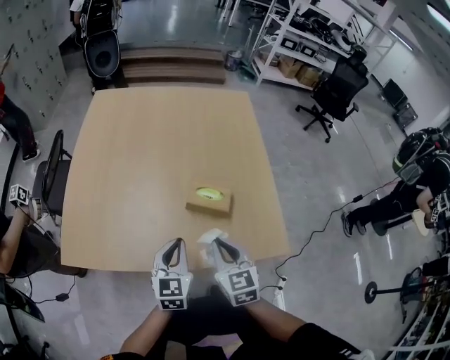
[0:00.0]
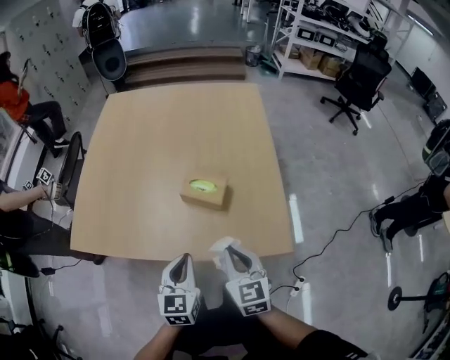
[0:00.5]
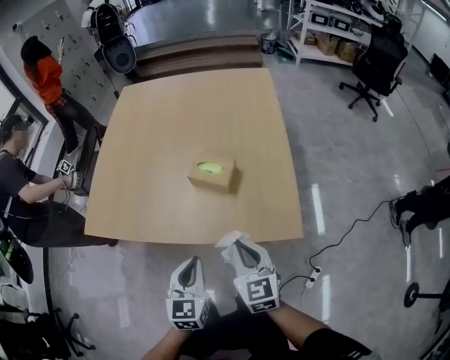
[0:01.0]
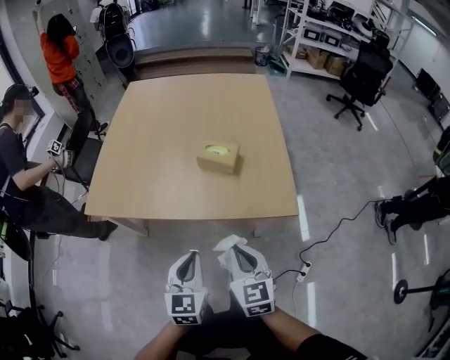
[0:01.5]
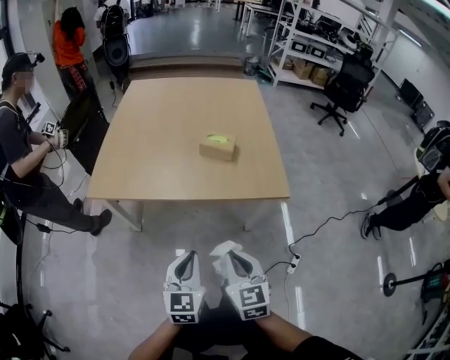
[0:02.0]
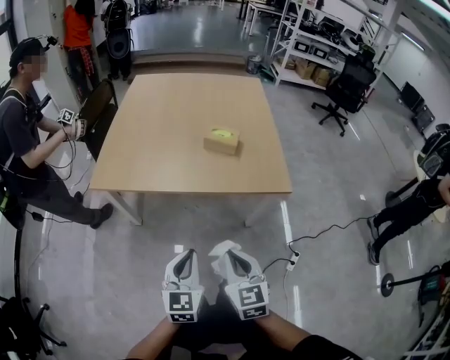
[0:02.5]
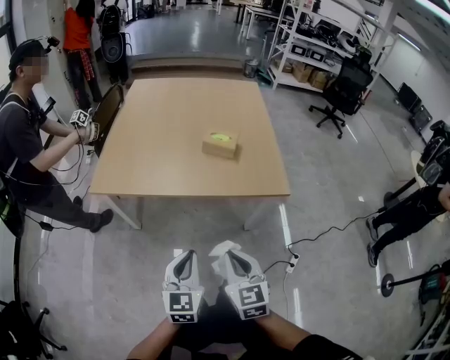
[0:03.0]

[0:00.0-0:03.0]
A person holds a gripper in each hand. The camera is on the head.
0:00.0 to 0:01.5: Both grippers move backward, approximately 20 cm.
0:01.5 to 0:03.0: Both grippers travel together backward, approximately 15 cm.

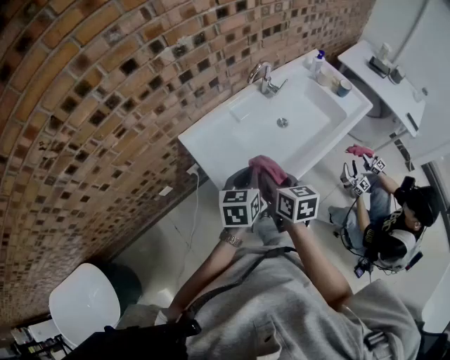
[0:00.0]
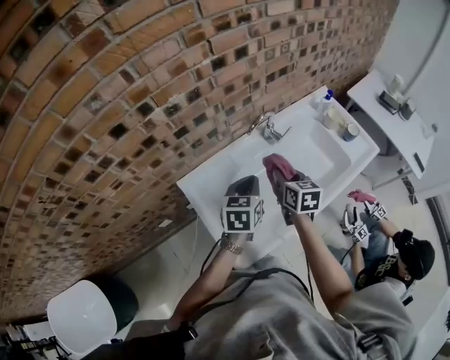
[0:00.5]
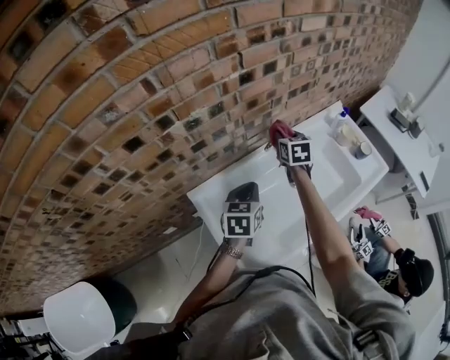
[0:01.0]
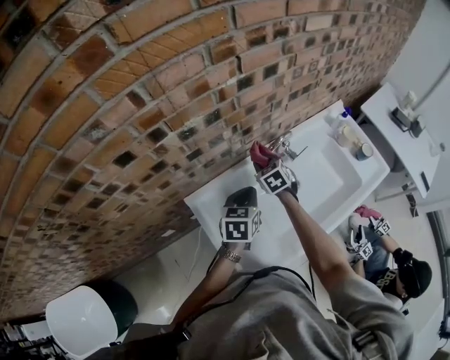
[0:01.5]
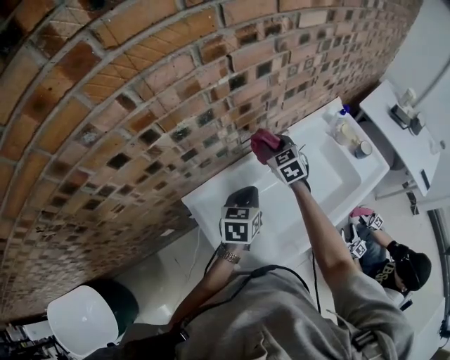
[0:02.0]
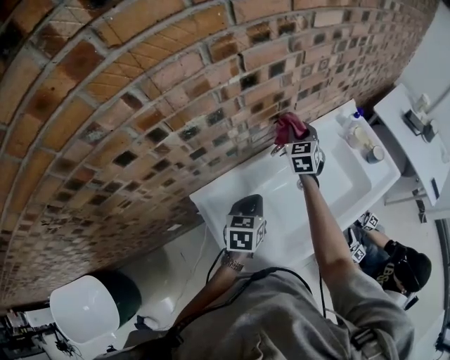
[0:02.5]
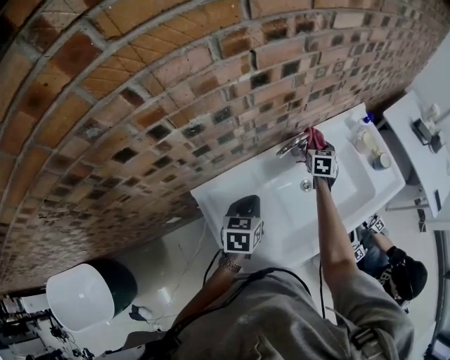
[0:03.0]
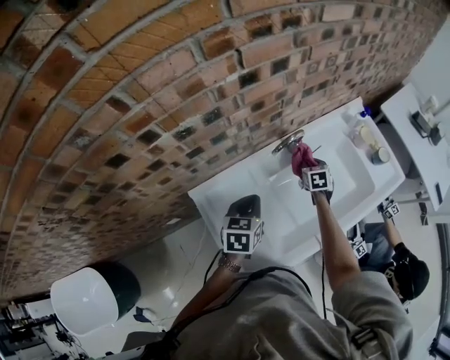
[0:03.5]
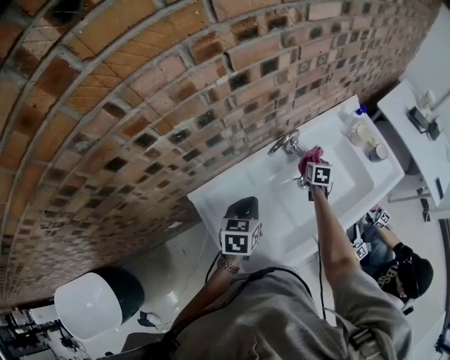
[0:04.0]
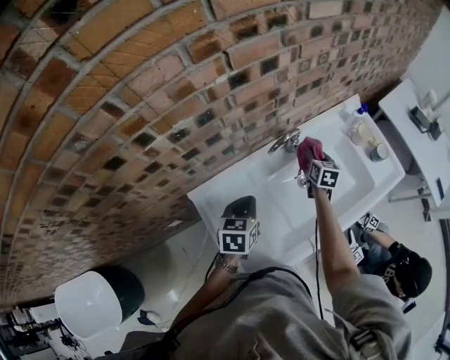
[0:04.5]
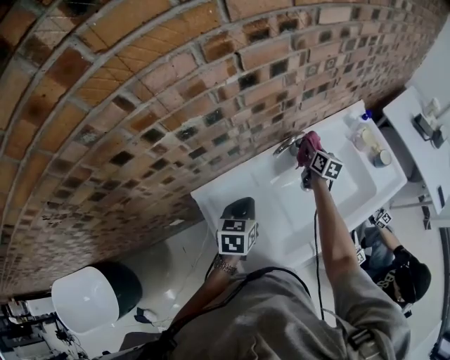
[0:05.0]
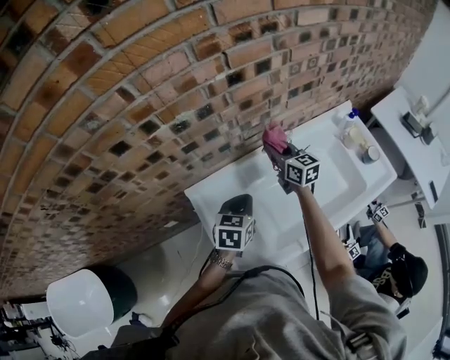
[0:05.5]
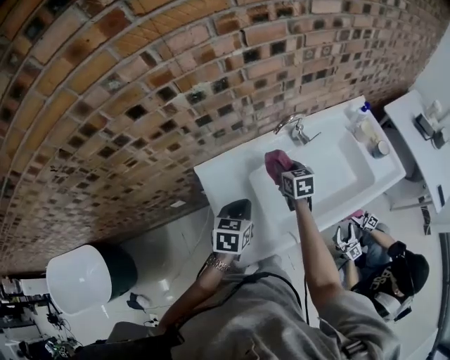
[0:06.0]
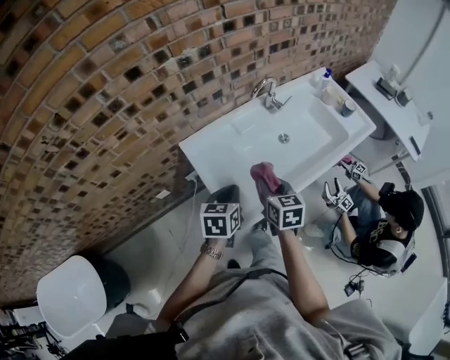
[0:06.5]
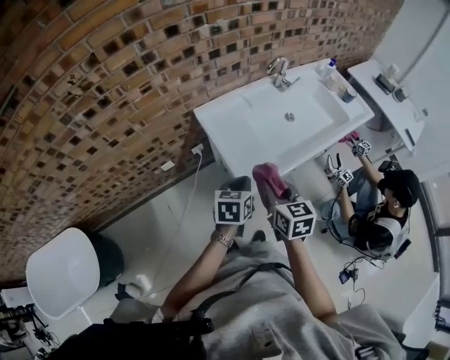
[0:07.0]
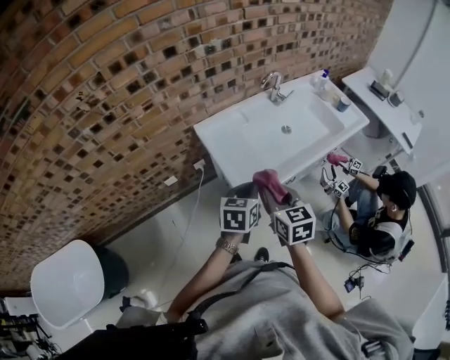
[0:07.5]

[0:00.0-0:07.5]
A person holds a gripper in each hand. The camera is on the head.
0:00.0 to 0:02.0: The left gripper heads forward, covering about 25 cm; the right gripper goes forward and backward, approximately 40 cm each way, reversing 2 times, and twists about 40 degrees counterclockwise, seen from behind.
0:02.0 to 0:04.0: The right gripper shifts roughly 25 cm downward and to the right, and changes its angle by roughly 40 degrees.
0:04.0 to 0:05.5: The right gripper is displaced upward and to the left by approximately 25 cm, and angles its fingers upward, by approximately 40 degrees.
0:05.5 to 0:07.5: The right gripper shifts roughly 50 cm backward, and rotates some 20 degrees; the left gripper travels backward by about 35 cm.

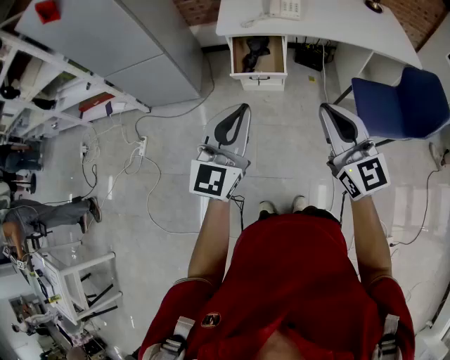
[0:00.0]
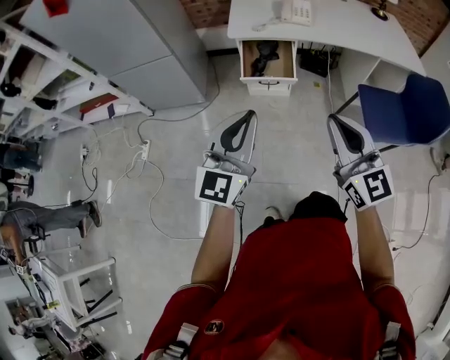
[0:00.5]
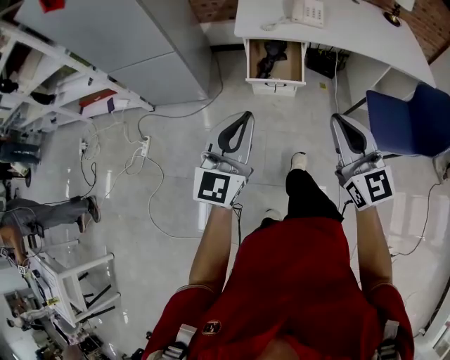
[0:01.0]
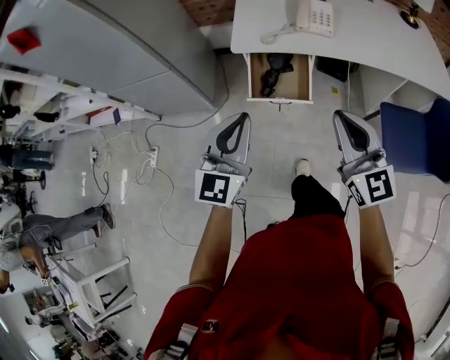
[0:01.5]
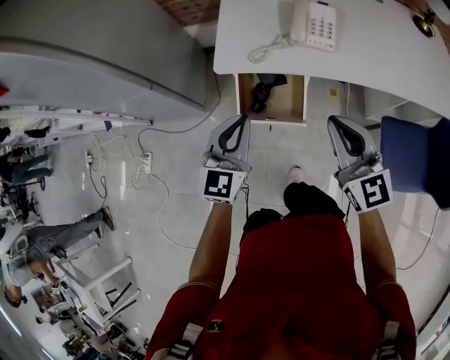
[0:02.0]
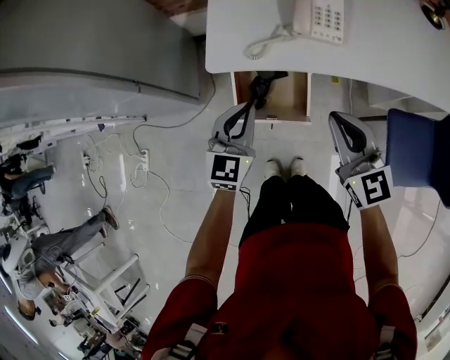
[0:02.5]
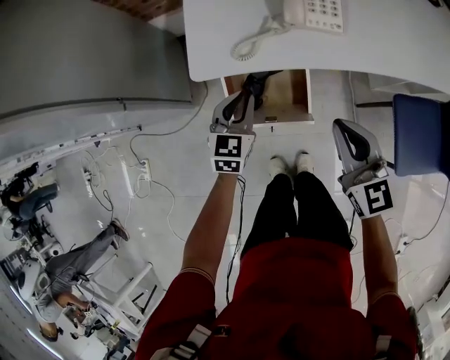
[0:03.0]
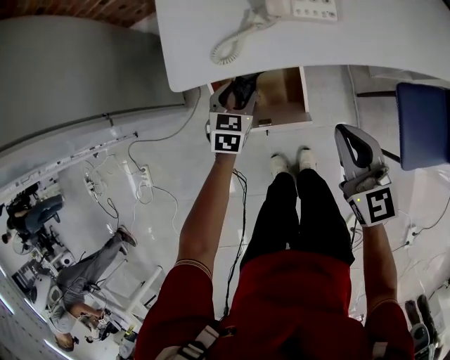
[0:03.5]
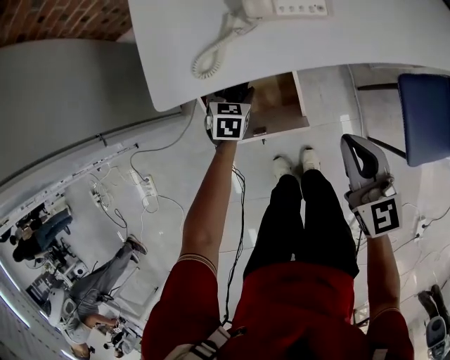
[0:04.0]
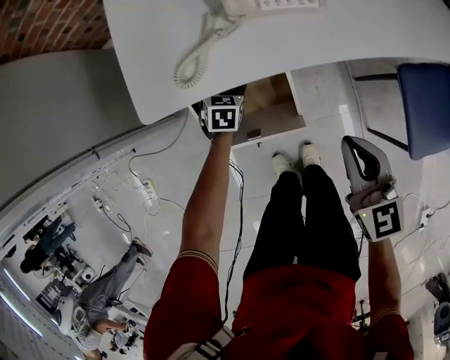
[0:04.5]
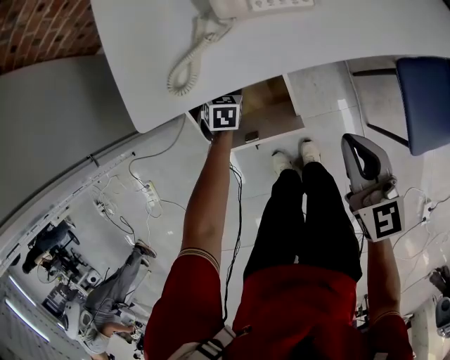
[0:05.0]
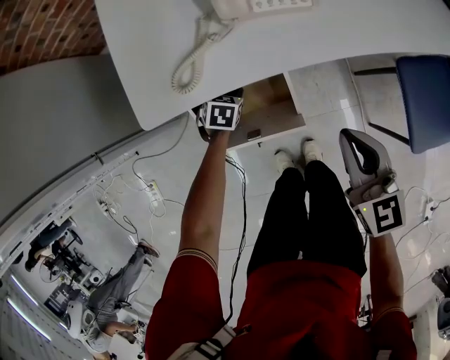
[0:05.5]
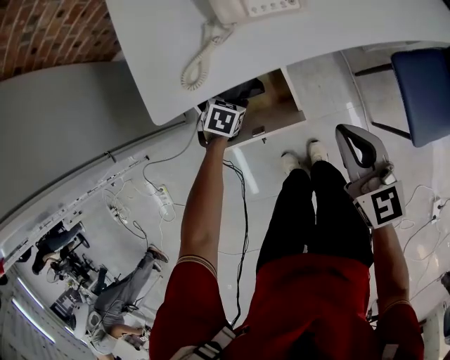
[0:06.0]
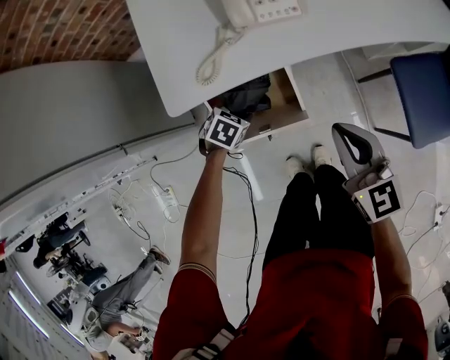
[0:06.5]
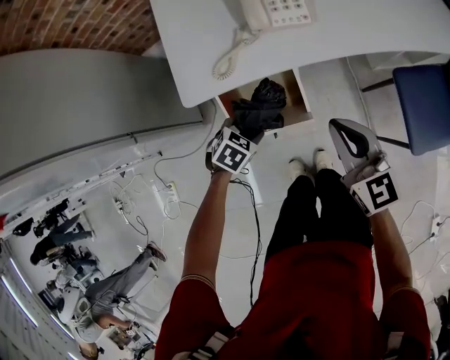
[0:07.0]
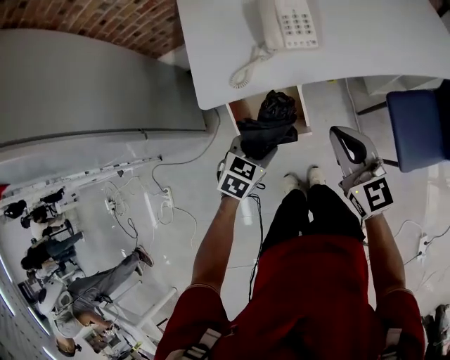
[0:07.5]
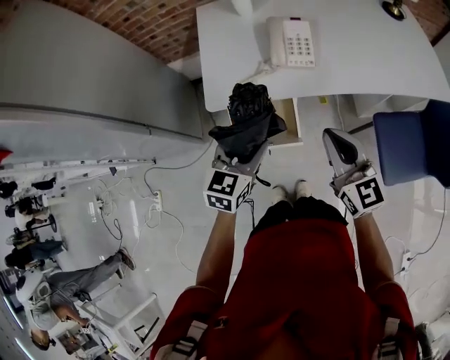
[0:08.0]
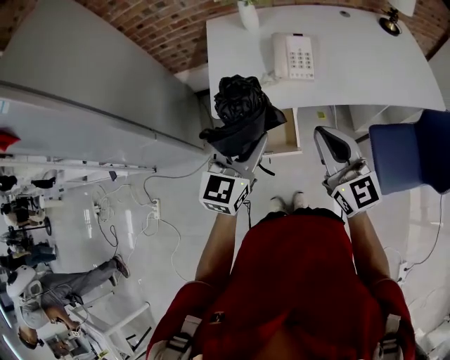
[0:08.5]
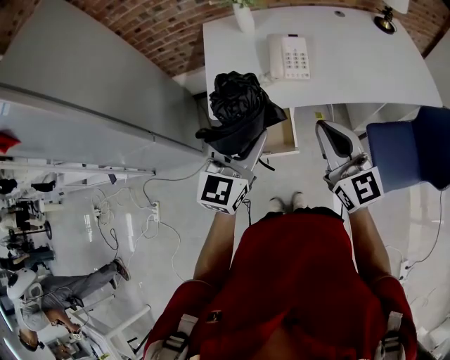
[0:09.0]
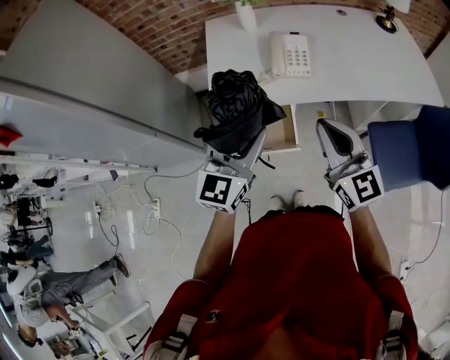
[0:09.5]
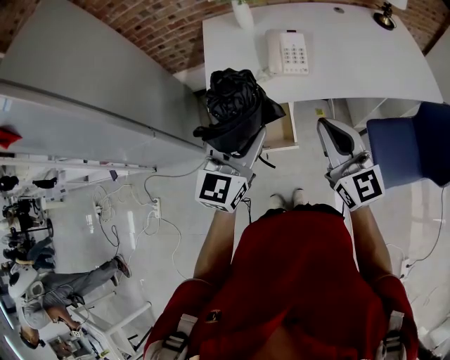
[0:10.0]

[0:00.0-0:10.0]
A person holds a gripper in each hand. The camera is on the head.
0:00.0 to 0:02.0: The grippers both shift forward by about 40 cm.
0:02.0 to 0:04.0: The left gripper travels downward and forward by about 40 cm, points its fingers approximately 40 degrees further downward, and opens up; the right gripper heads downward, covering approximately 20 cm, and rotates roughly 20 degrees.
0:04.0 to 0:06.0: The left gripper changes its angle by some 30 degrees.
0:06.0 to 0:08.0: The right gripper shifts some 20 cm upward. The left gripper moves upward, about 40 cm, and tips its fingers upward by roughly 50 degrees.
0:08.0 to 0:10.0: The left gripper goes about 15 cm upward, and rotates some 20 degrees, while the right gripper shifts roughly 5 cm upward.

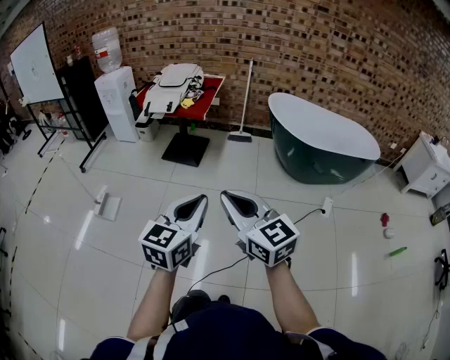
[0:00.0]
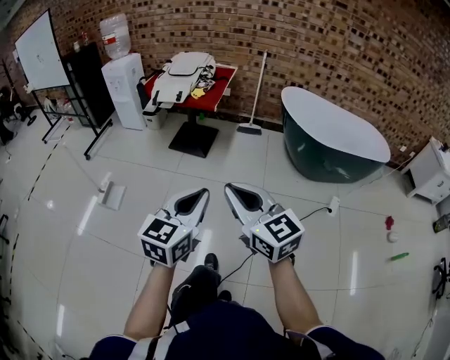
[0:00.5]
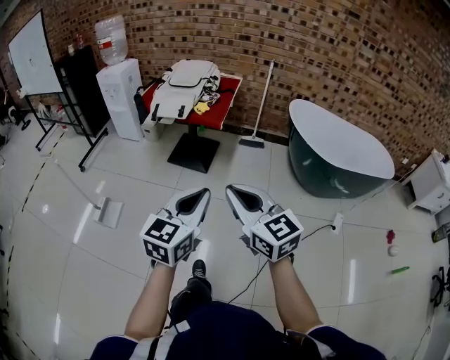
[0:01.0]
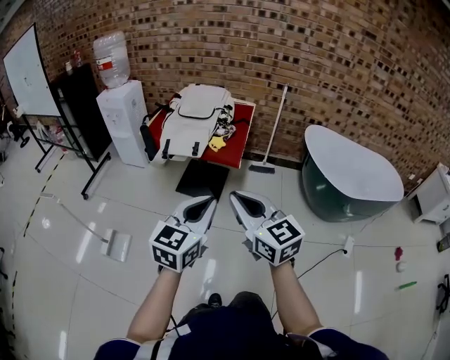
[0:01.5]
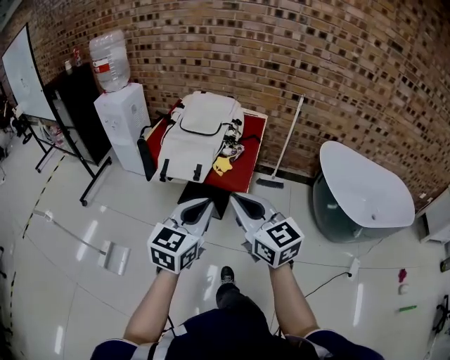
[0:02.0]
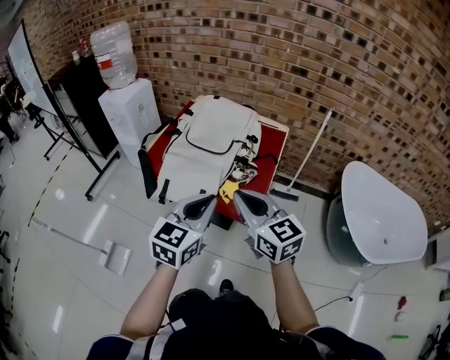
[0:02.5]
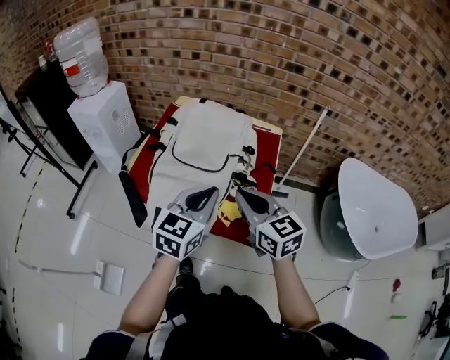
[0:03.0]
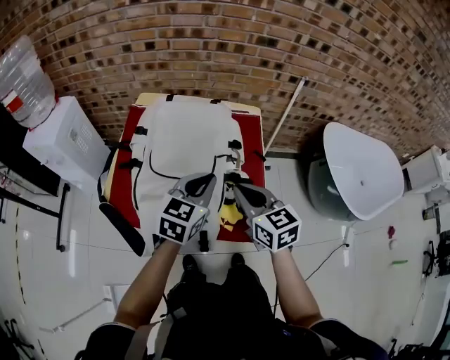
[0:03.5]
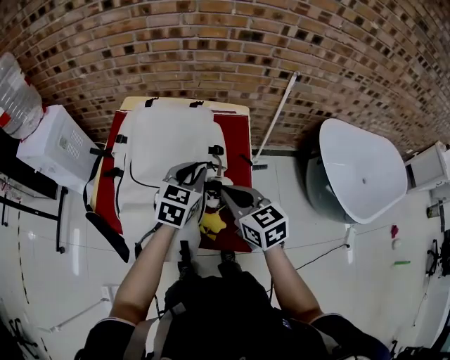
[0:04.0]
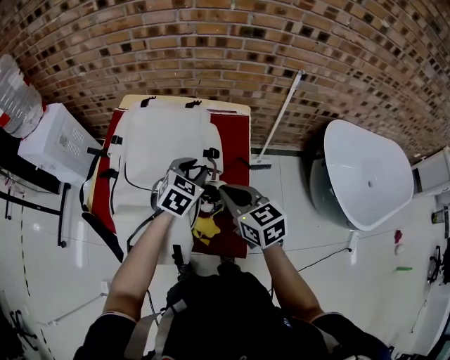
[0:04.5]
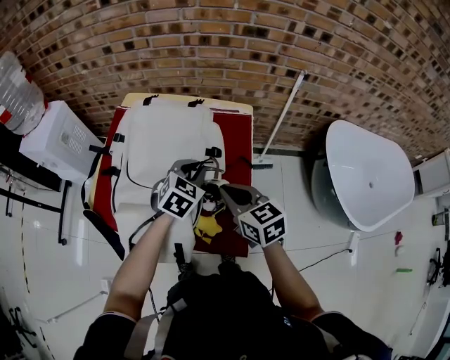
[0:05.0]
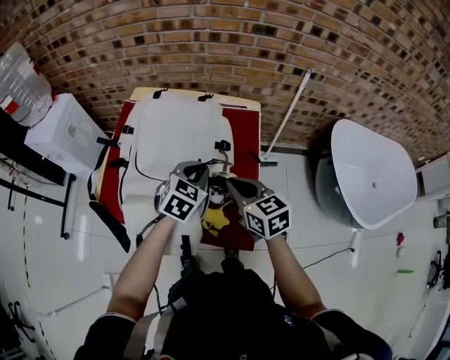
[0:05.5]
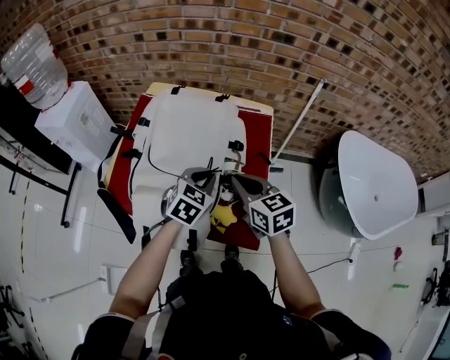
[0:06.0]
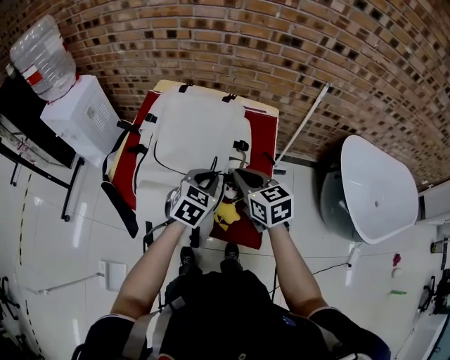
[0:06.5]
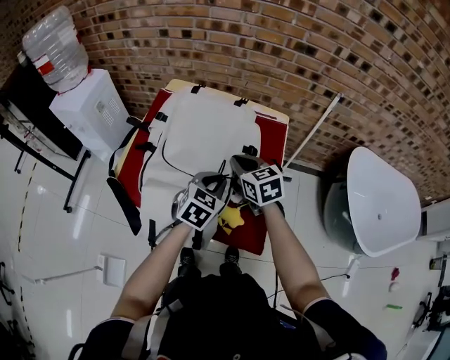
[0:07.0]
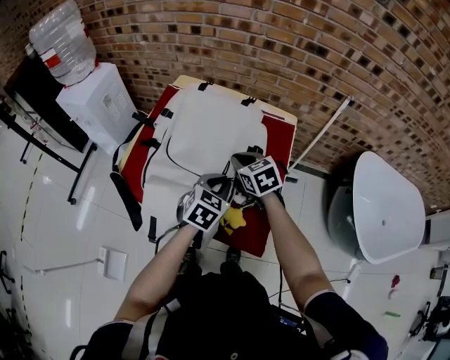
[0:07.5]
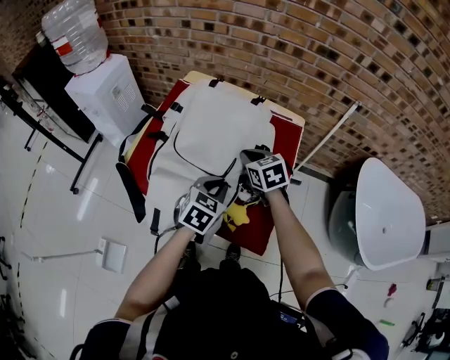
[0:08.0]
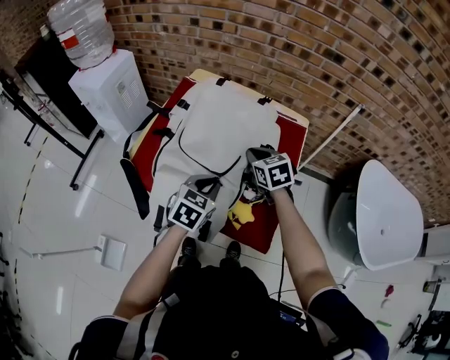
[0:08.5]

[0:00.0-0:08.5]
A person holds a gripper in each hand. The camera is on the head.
0:00.0 to 0:02.0: The two grippers travel together, forward, roughly 50 cm.
0:02.0 to 0:04.0: Both grippers move forward, about 40 cm. The right gripper turns by some 30 degrees. Meanwhile the left gripper rotates about 20 degrees.
0:04.0 to 0:06.5: The left gripper changes place by some 5 cm.
0:06.5 to 0:08.5: The left gripper travels to the left by some 5 cm, while the right gripper is displaced forward and downward by about 10 cm.
